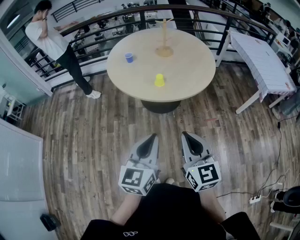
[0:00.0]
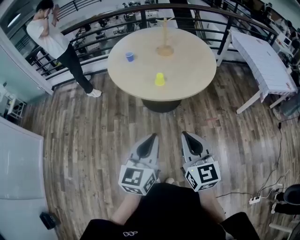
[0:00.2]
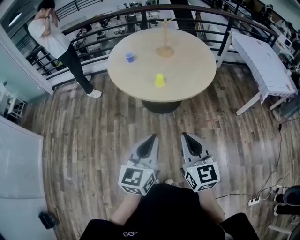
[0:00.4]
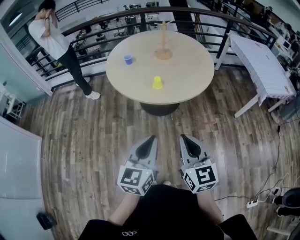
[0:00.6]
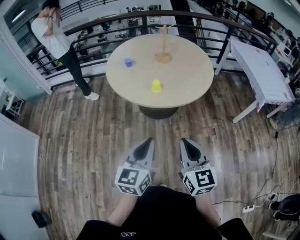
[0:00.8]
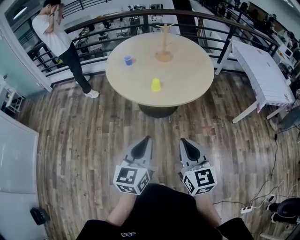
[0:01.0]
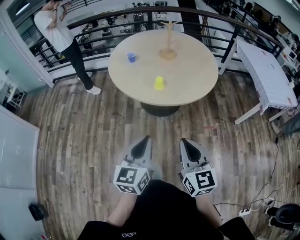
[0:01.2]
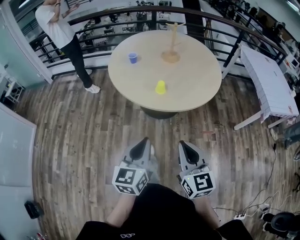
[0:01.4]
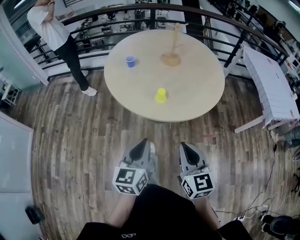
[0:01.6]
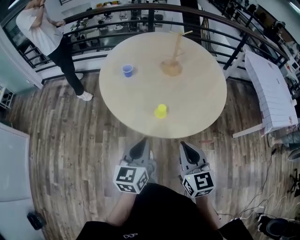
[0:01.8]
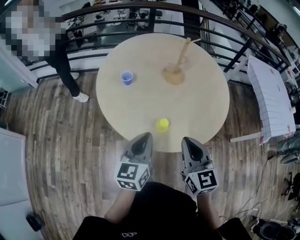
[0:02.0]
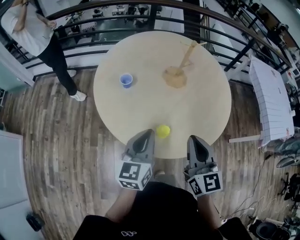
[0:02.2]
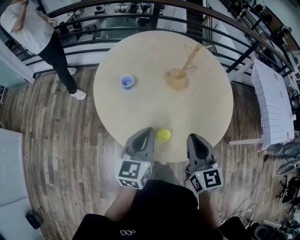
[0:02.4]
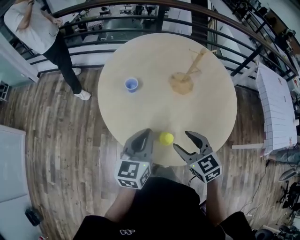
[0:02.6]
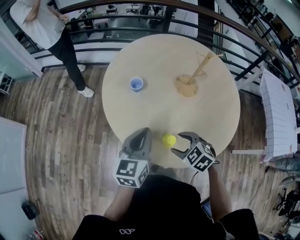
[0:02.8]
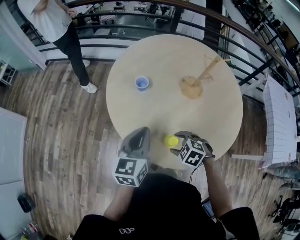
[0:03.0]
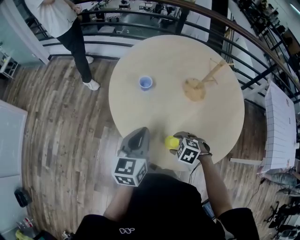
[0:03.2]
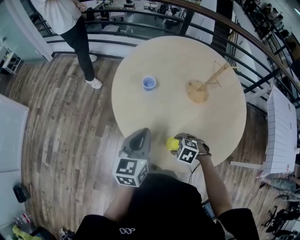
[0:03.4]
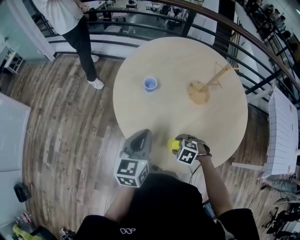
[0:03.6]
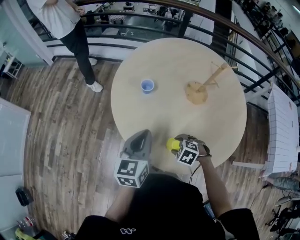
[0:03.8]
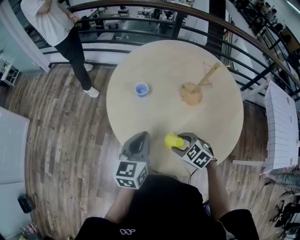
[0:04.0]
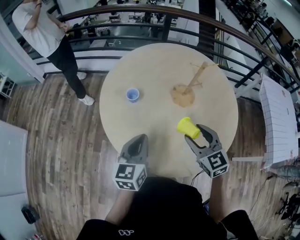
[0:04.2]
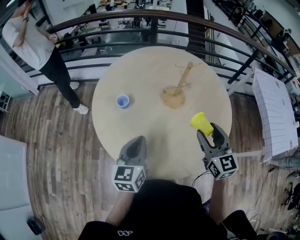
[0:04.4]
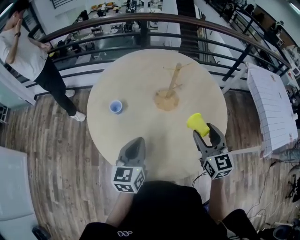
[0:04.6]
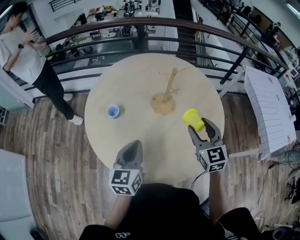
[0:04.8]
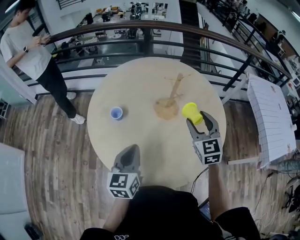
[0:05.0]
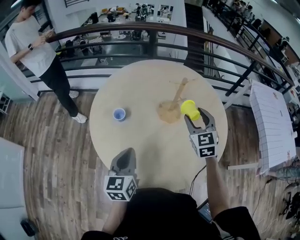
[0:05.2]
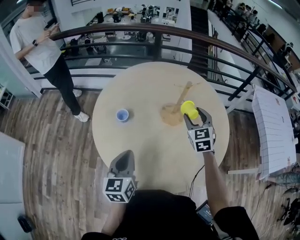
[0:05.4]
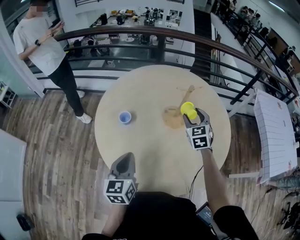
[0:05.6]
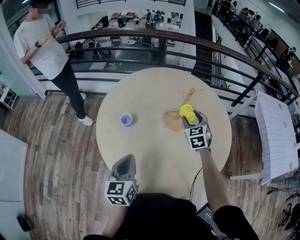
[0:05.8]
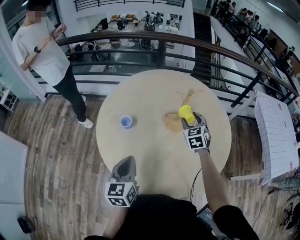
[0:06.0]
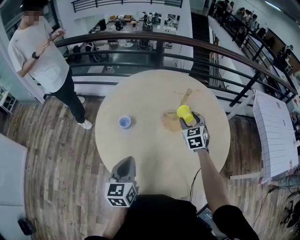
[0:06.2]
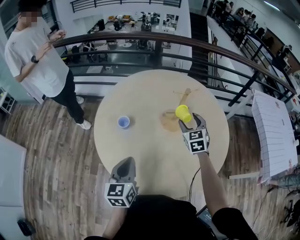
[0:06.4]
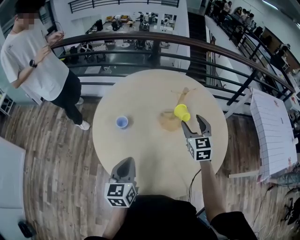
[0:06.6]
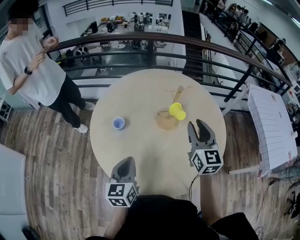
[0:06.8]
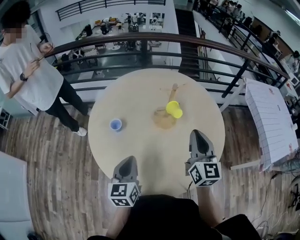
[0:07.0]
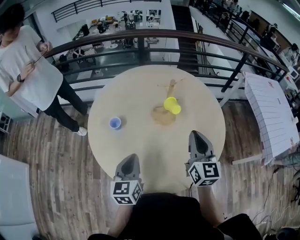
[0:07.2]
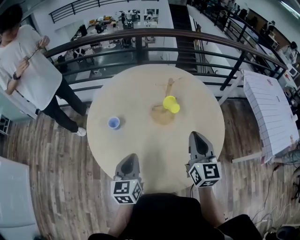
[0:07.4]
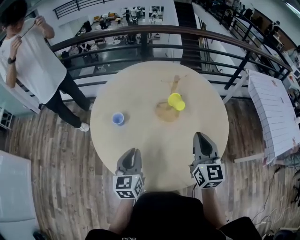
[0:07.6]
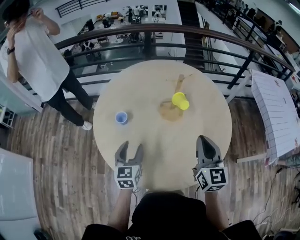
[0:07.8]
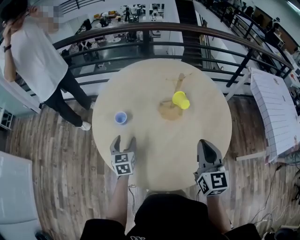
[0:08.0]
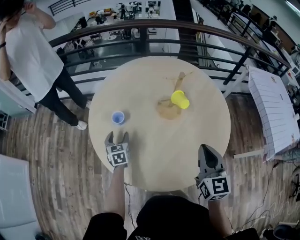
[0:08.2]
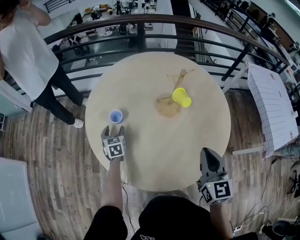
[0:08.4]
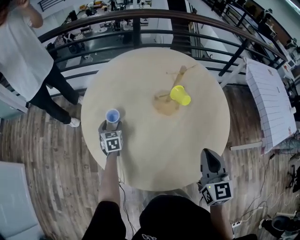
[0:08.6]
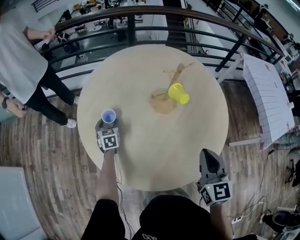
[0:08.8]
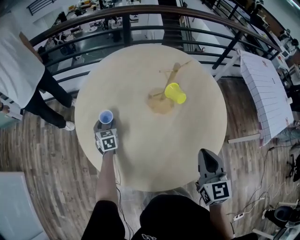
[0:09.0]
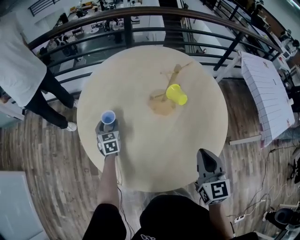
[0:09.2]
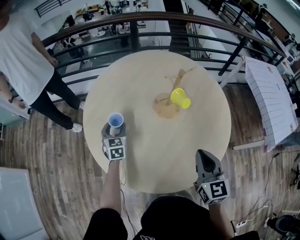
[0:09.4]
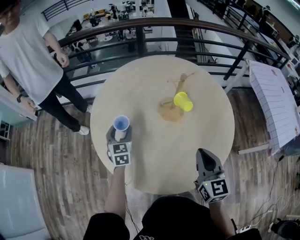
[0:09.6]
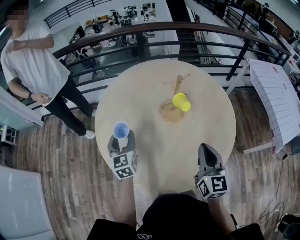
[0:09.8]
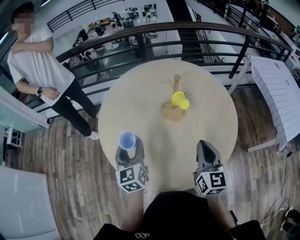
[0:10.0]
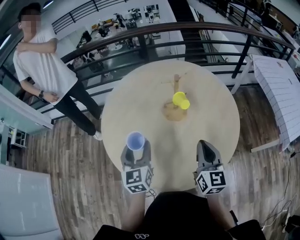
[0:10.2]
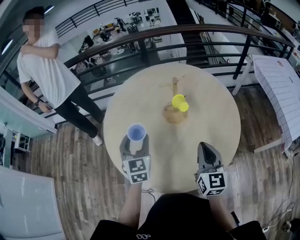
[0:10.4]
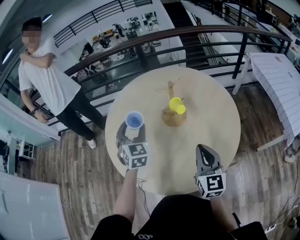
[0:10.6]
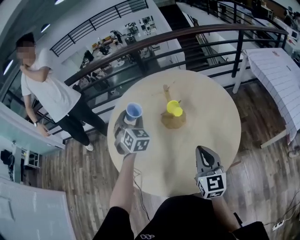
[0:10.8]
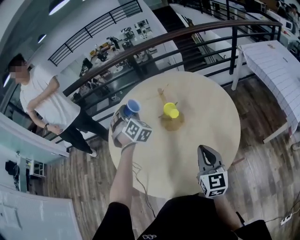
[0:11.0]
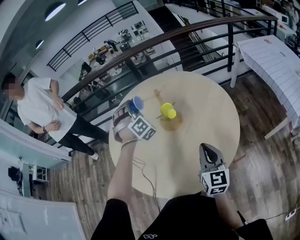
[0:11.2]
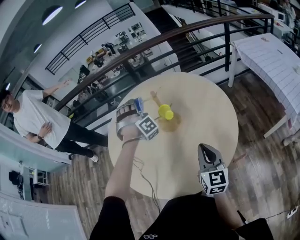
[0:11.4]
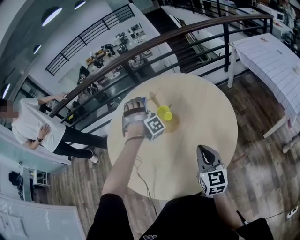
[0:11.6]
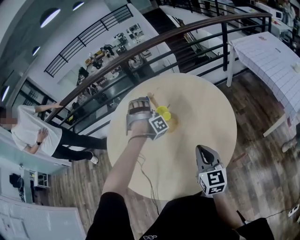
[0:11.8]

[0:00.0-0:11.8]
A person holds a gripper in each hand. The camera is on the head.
0:00.0 to 0:01.4: The left gripper heads forward and downward, covering approximately 10 cm. The right gripper heads forward, covering some 5 cm.
0:01.4 to 0:03.0: The two grippers travel together, approximately 40 cm. The right gripper tips its fingers downward by some 60 degrees, and opens up.
0:03.0 to 0:04.4: The left gripper ends up about 5 cm from where it was. Meanwhile the right gripper is displaced upward by approximately 20 cm, and points its fingers some 60 degrees further upward.
0:04.4 to 0:06.0: The right gripper travels forward by some 20 cm, and swivels about 30 degrees.
0:06.0 to 0:07.4: The right gripper heads backward and upward, covering roughly 20 cm, turns by roughly 40 degrees, and closes.
0:07.4 to 0:08.8: The right gripper goes about 5 cm downward and backward. The left gripper moves forward, downward and to the left, approximately 35 cm, rotates approximately 20 degrees, and opens its fingers.
0:08.8 to 0:10.4: The left gripper is displaced upward, backward and to the right by about 30 cm, and swivels approximately 20 degrees.
0:10.4 to 0:11.8: The left gripper heads to the right and forward, covering roughly 25 cm, and twists approximately 110 degrees clockwise, seen from behind; the right gripper goes about 5 cm to the right.

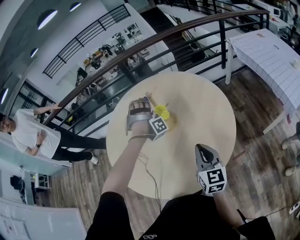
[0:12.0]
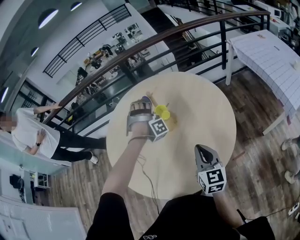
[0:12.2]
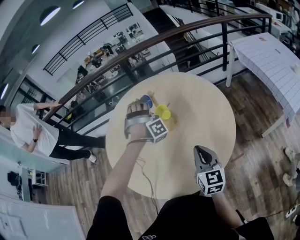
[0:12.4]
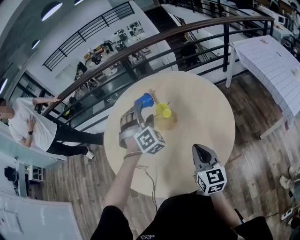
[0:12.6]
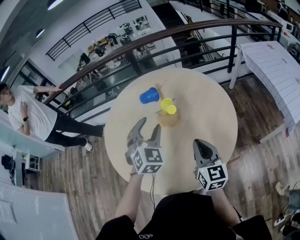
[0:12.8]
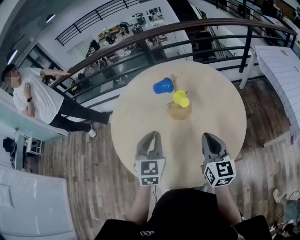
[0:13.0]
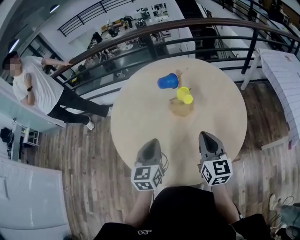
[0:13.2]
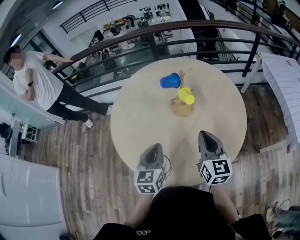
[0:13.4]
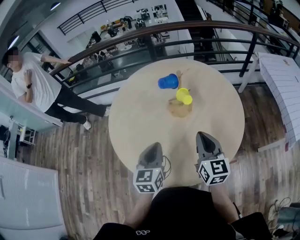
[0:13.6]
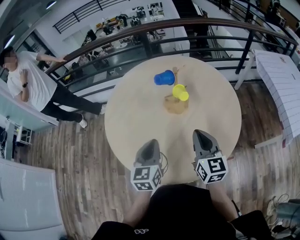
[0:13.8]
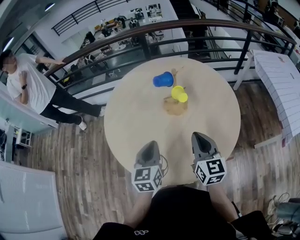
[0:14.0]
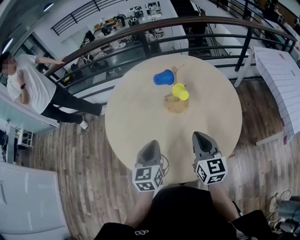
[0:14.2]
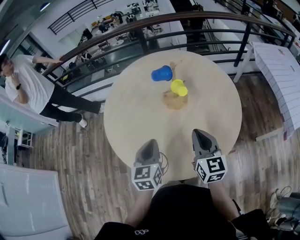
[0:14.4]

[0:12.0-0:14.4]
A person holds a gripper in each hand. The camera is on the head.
0:12.0 to 0:13.2: The left gripper shifts approximately 25 cm backward and to the left, rotates around the line of its fingers by some 120 degrees, counterclockwise from behind, and closes. Meanwhile the right gripper heads to the left, covering roughly 5 cm.
0:13.2 to 0:14.4: The grippers make only small movements.

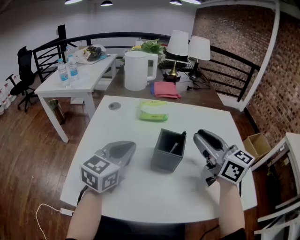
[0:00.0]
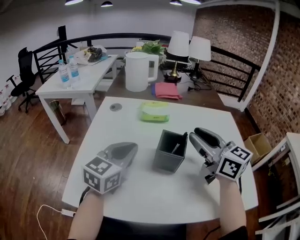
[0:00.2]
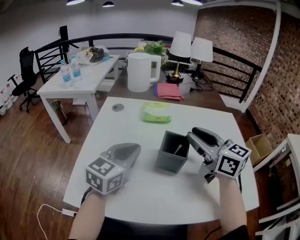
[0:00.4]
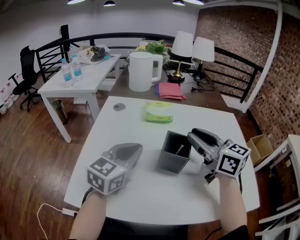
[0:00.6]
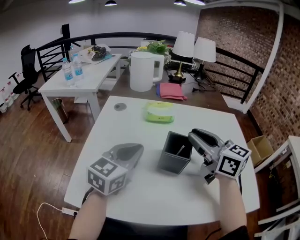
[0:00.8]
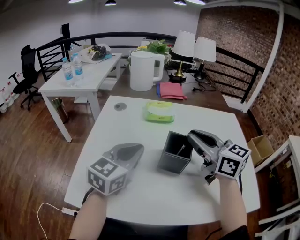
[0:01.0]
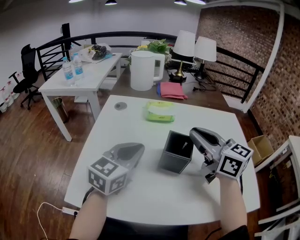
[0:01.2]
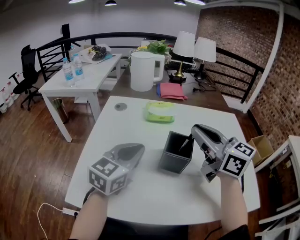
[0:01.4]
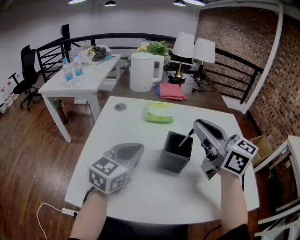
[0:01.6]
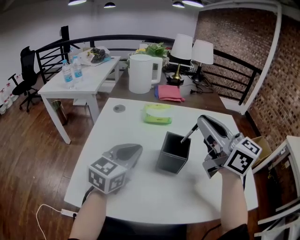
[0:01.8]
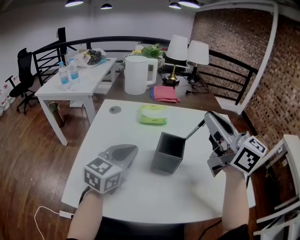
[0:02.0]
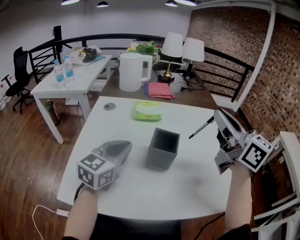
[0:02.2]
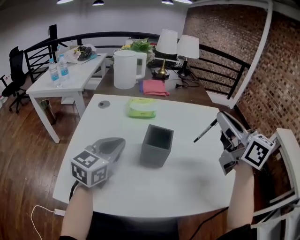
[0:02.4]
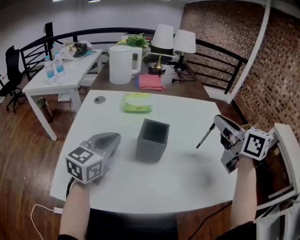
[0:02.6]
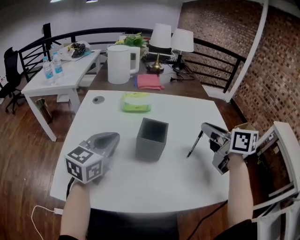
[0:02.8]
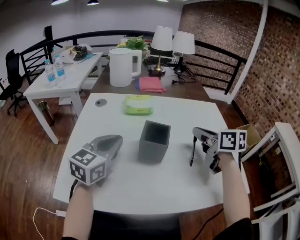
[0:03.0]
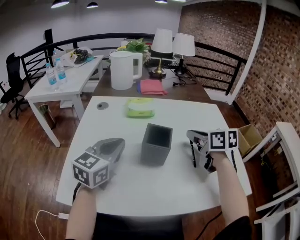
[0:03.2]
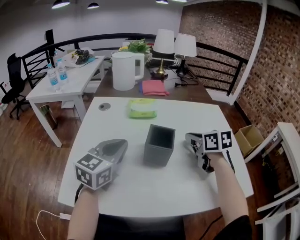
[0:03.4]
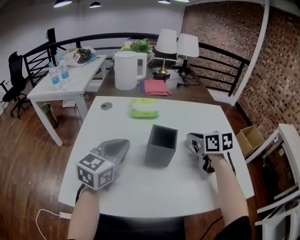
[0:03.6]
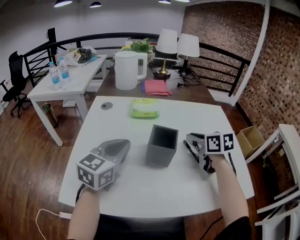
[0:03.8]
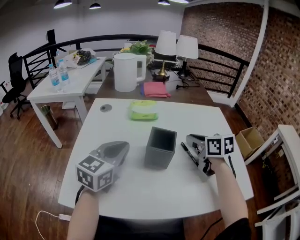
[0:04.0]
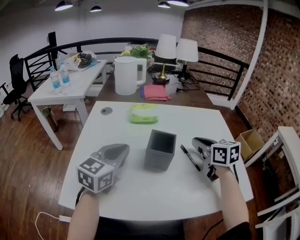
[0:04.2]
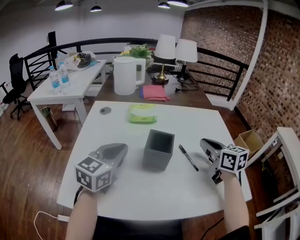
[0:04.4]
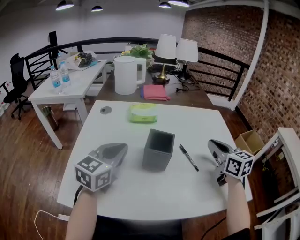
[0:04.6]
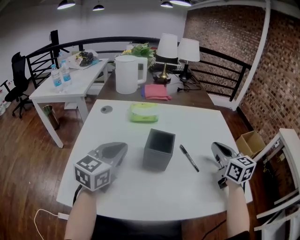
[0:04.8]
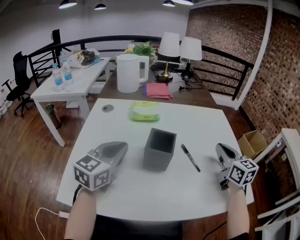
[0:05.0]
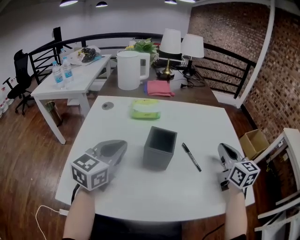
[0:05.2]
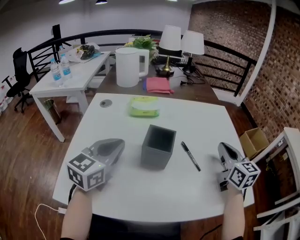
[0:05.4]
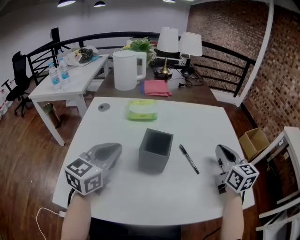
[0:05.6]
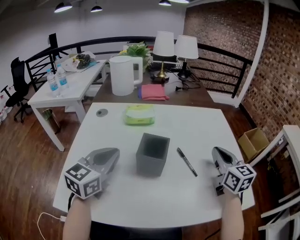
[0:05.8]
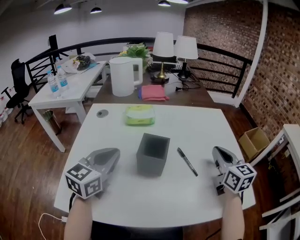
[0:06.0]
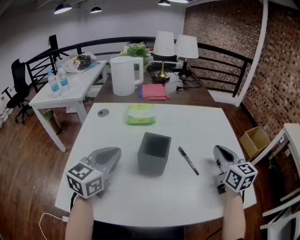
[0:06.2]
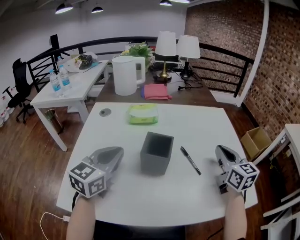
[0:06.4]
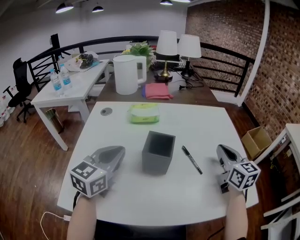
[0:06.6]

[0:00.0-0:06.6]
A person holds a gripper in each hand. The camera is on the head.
0:00.0 to 0:01.6: The right gripper heads upward, covering some 5 cm.
0:01.6 to 0:03.2: The right gripper moves downward and to the right, about 20 cm, and angles its fingers downward, by some 30 degrees.
0:03.2 to 0:05.0: The right gripper is displaced to the right by about 10 cm, and rotates approximately 30 degrees.
0:05.0 to 0:06.6: Both grippers stay put.

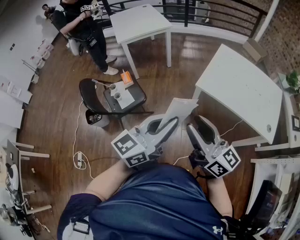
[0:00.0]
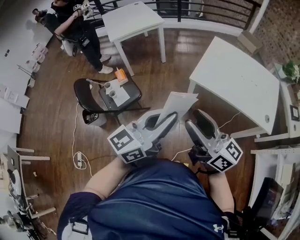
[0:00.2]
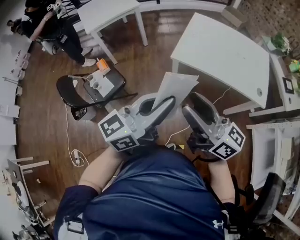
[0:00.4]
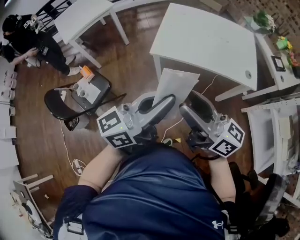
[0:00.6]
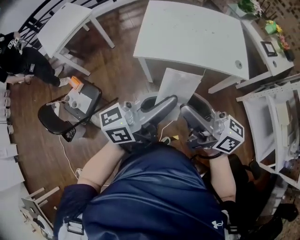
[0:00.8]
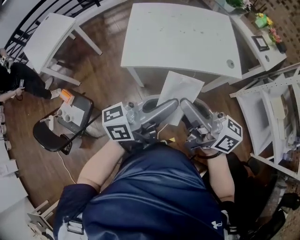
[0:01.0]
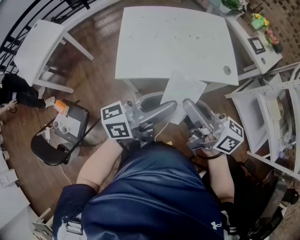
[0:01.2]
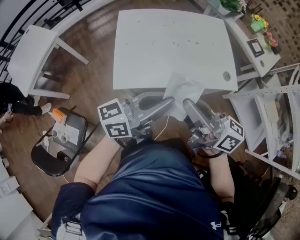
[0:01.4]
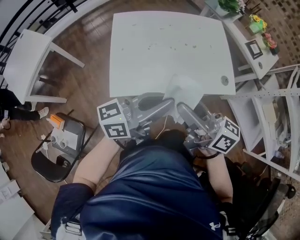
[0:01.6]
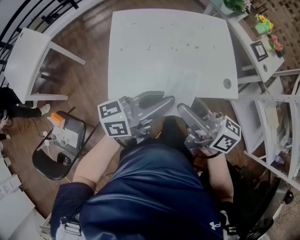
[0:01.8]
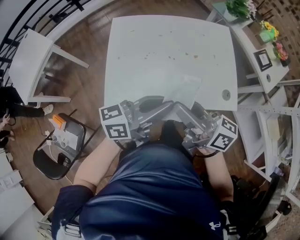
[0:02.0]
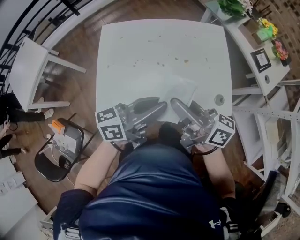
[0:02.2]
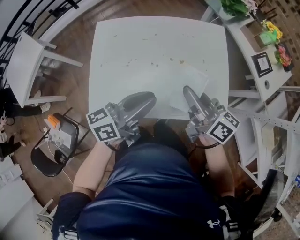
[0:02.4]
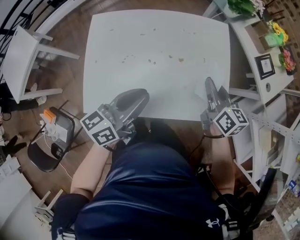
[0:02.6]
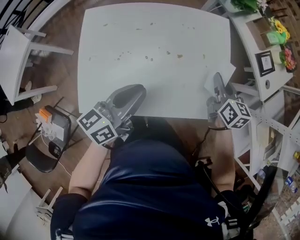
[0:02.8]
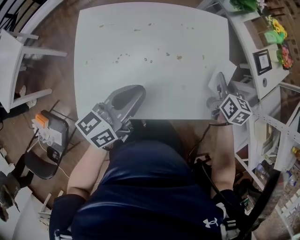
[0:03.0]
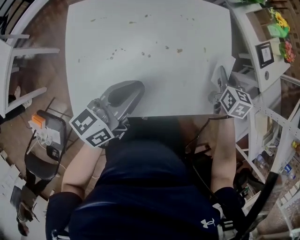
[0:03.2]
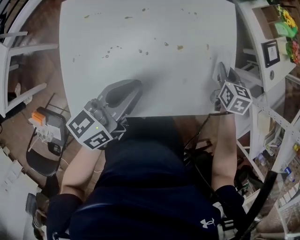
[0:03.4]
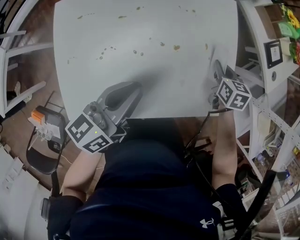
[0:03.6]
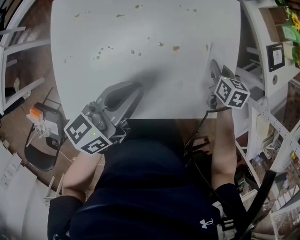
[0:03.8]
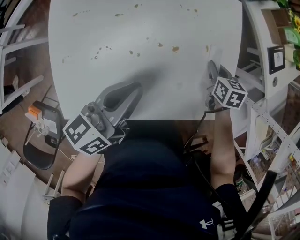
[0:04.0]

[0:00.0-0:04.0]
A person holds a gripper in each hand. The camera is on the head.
0:00.0 to 0:01.4: The right gripper moves roughly 30 cm, changes its angle by some 30 degrees, and closes. Meanwhile the left gripper ends up approximately 35 cm from where it was, rotates approximately 50 degrees, and opens, then closes again.
0:01.4 to 0:02.6: The right gripper shifts about 40 cm forward, to the right and downward, rotates approximately 40 degrees, and opens, then closes again; the left gripper shifts about 25 cm forward and downward, and changes its angle by some 30 degrees.
0:02.6 to 0:04.0: The left gripper moves forward and downward, some 10 cm. Meanwhile the right gripper moves downward, about 20 cm, and tilts its fingers some 40 degrees downward.
